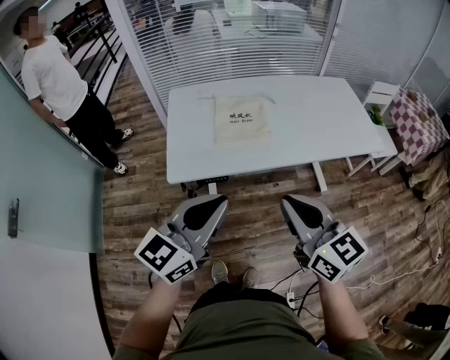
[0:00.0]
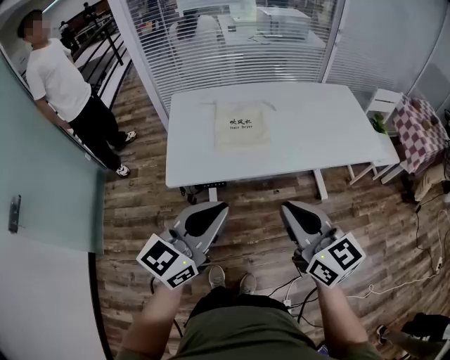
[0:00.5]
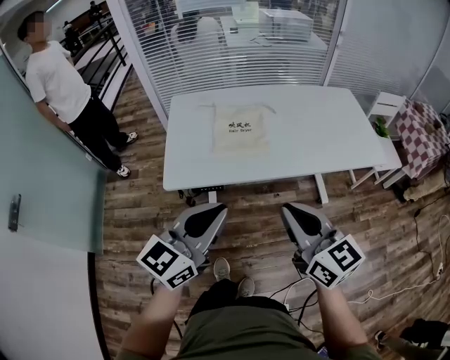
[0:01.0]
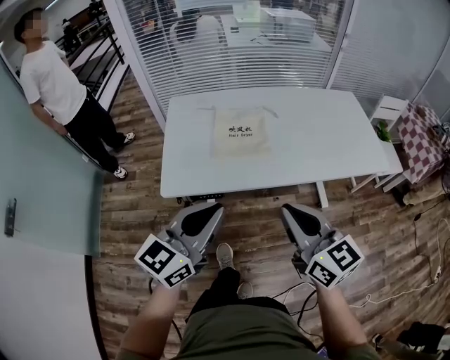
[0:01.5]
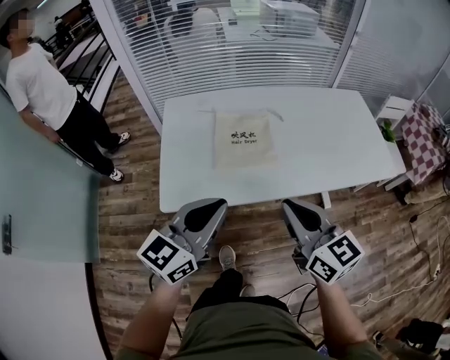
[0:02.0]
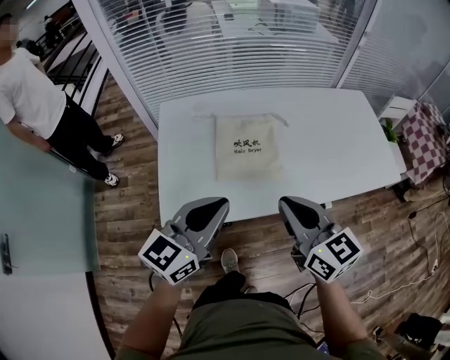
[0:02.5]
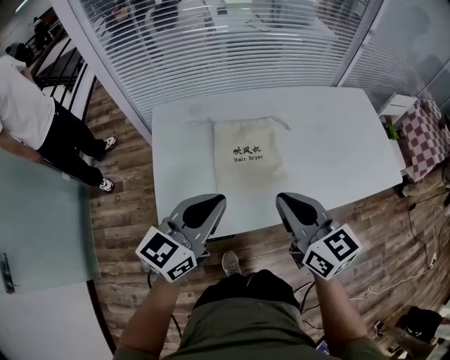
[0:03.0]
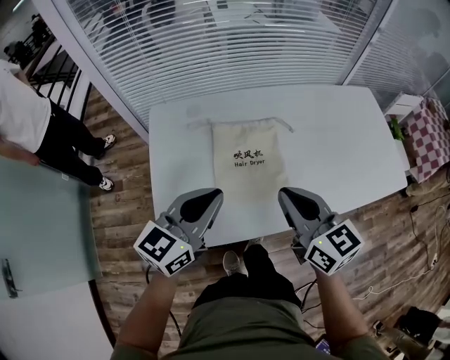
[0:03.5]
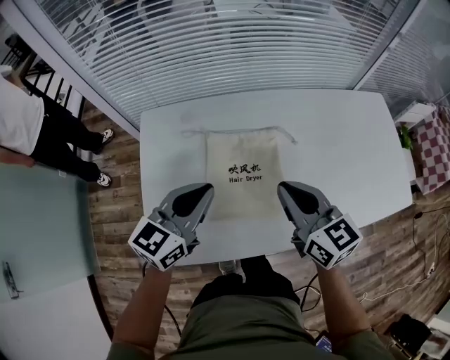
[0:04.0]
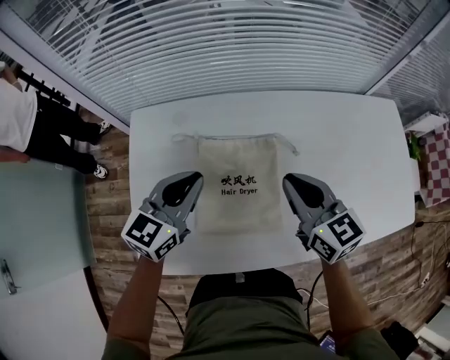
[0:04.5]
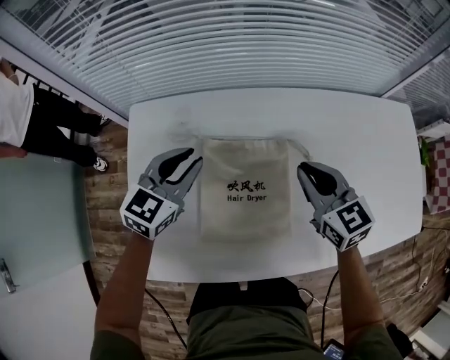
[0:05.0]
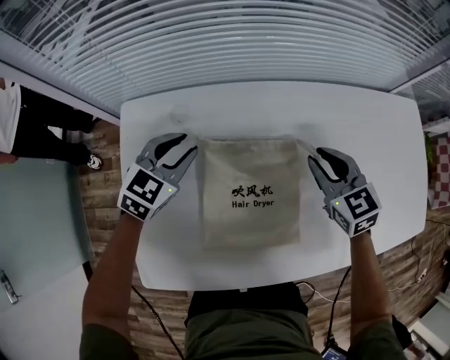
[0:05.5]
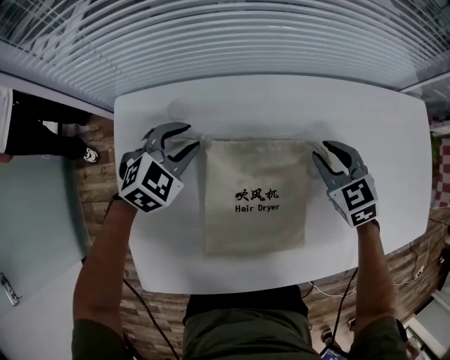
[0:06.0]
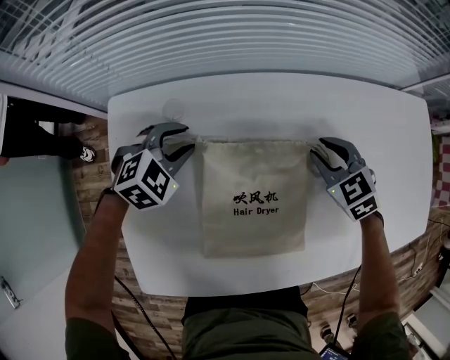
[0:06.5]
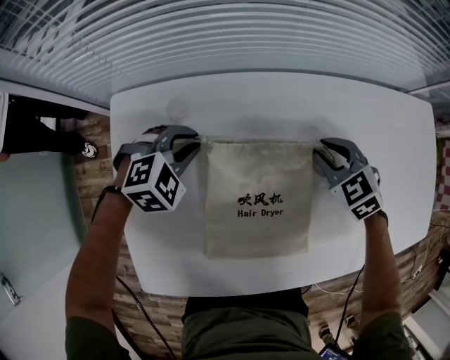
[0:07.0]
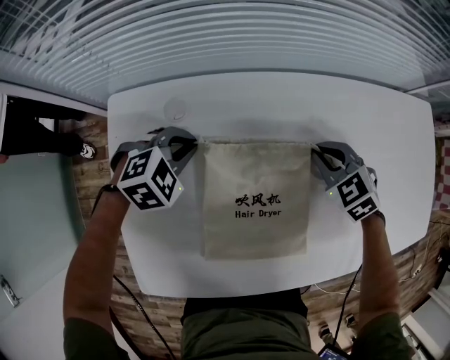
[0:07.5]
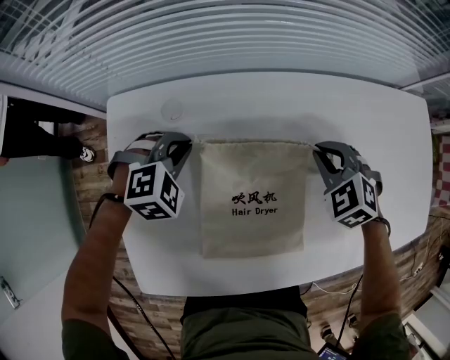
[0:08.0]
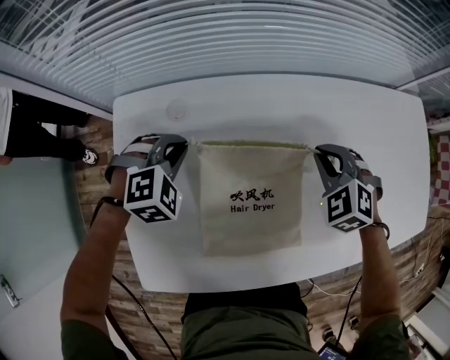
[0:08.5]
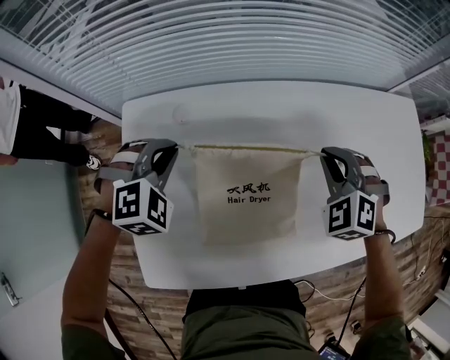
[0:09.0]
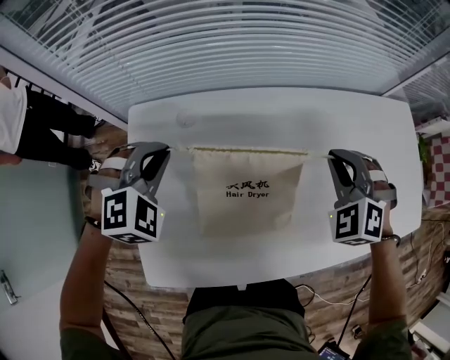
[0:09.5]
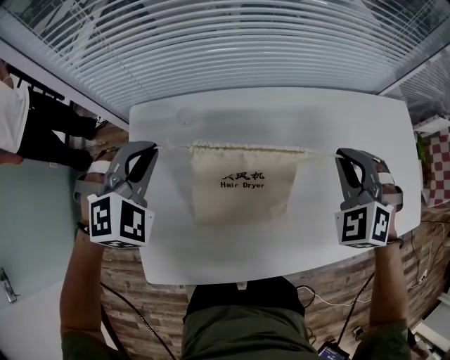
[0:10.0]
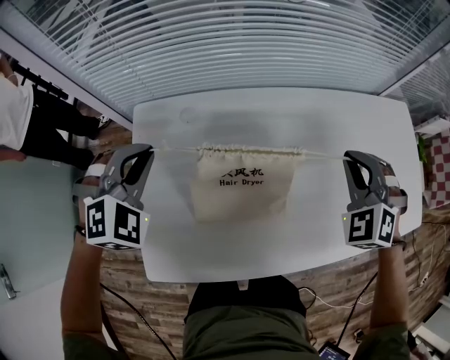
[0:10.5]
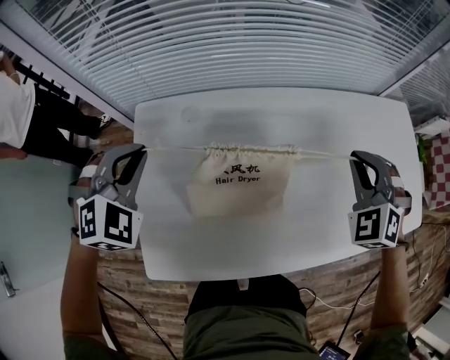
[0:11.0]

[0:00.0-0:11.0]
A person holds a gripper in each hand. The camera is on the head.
0:00.0 to 0:02.0: The two grippers go about 15 cm forward.
0:02.0 to 0:03.5: Both grippers move forward, roughly 20 cm.
0:03.5 to 0:05.5: The two grippers go roughly 30 cm forward and downward. The left gripper rotates some 30 degrees, and opens up; the right gripper rotates some 30 degrees.
0:05.5 to 0:07.5: The grippers both shift downward by some 5 cm. The left gripper changes its angle by some 40 degrees; the right gripper rotates approximately 30 degrees.
0:07.5 to 0:09.0: Both grippers move upward, some 10 cm. The right gripper swivels approximately 30 degrees; the left gripper turns by roughly 20 degrees.
0:09.0 to 0:11.0: The right gripper moves to the right and upward, approximately 10 cm, while the left gripper heads upward and backward, covering about 15 cm.

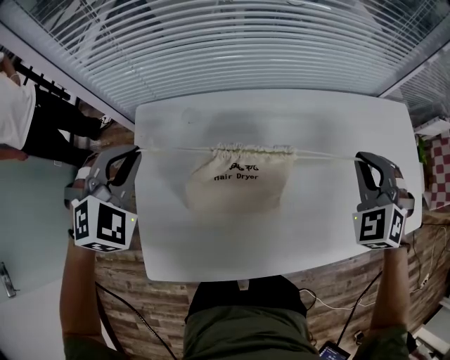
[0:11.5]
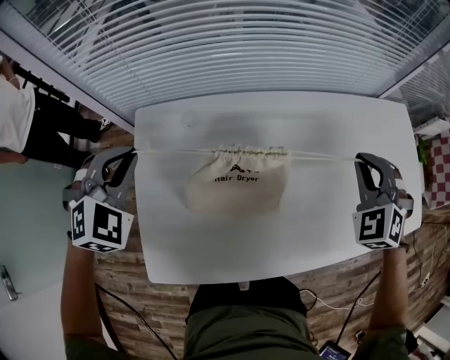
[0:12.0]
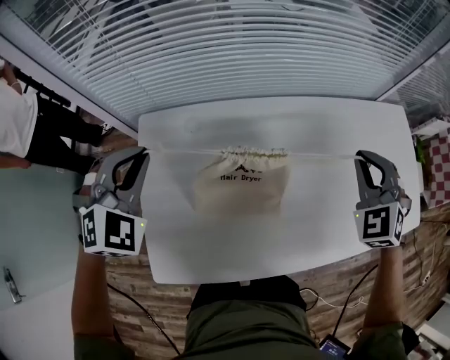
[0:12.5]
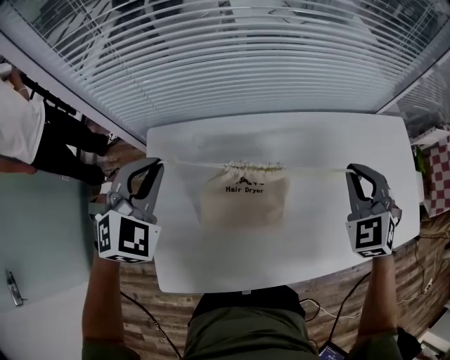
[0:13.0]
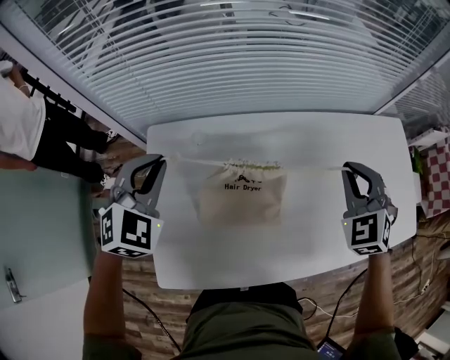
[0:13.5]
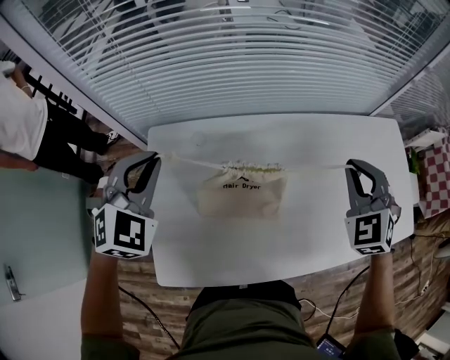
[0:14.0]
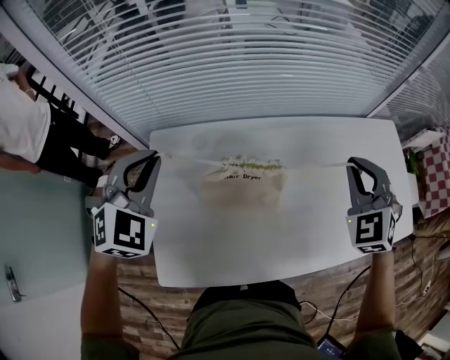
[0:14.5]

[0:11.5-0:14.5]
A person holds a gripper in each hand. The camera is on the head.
0:11.5 to 0:13.0: The grippers stay close to where they were, moving slightly.
0:13.0 to 0:14.5: There are only small adjustments of the grippers.

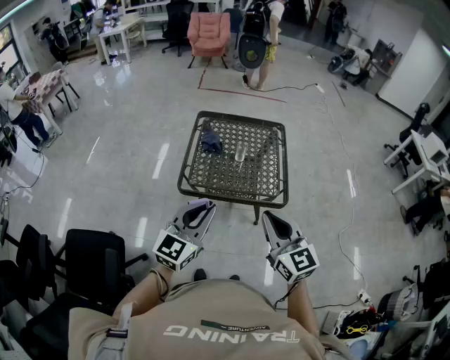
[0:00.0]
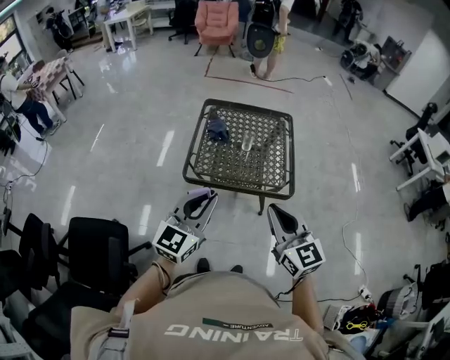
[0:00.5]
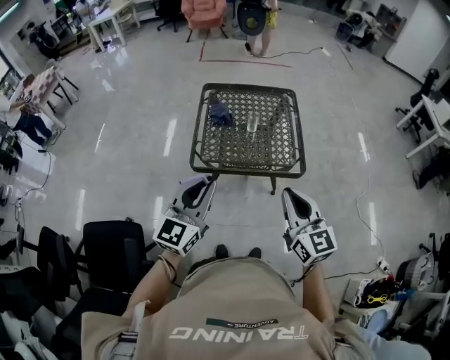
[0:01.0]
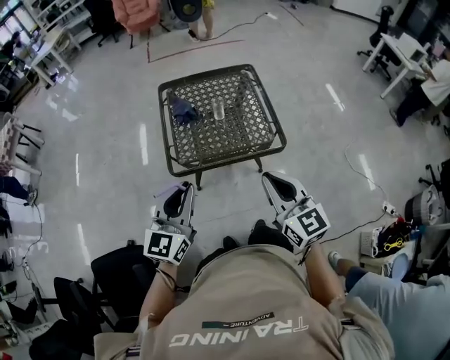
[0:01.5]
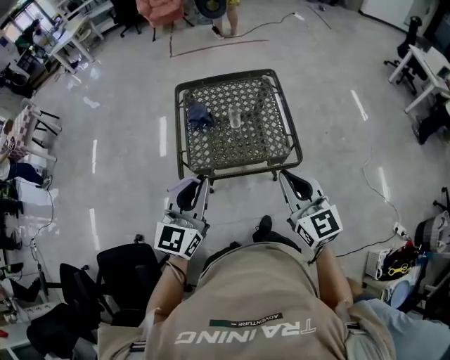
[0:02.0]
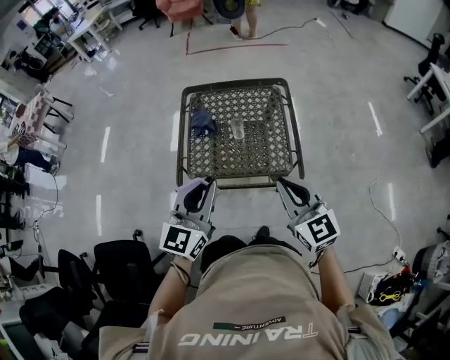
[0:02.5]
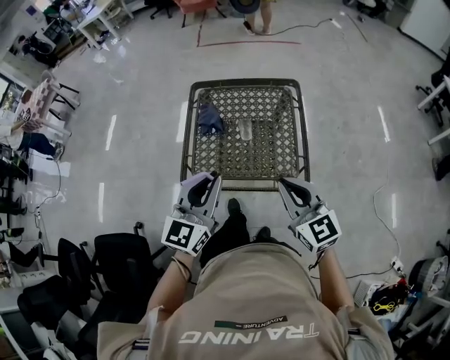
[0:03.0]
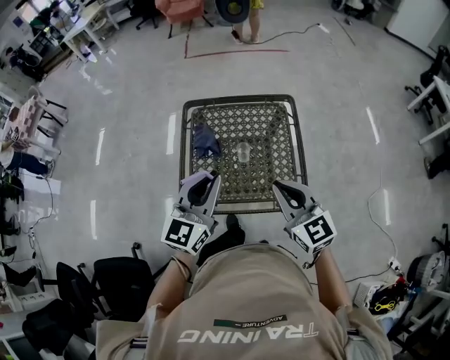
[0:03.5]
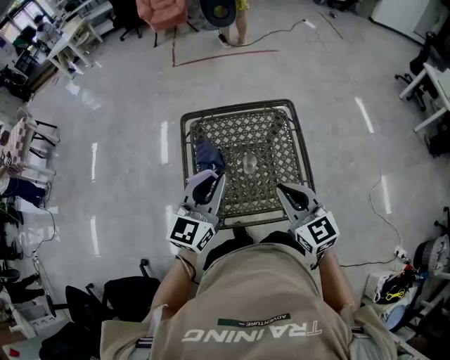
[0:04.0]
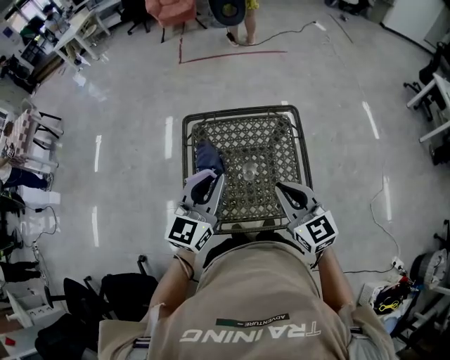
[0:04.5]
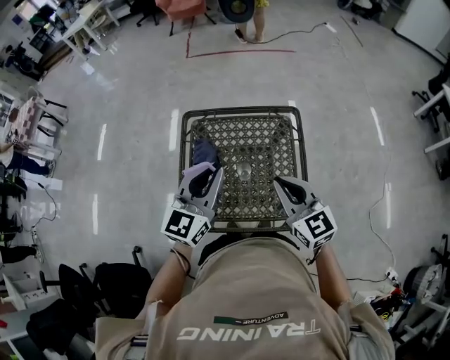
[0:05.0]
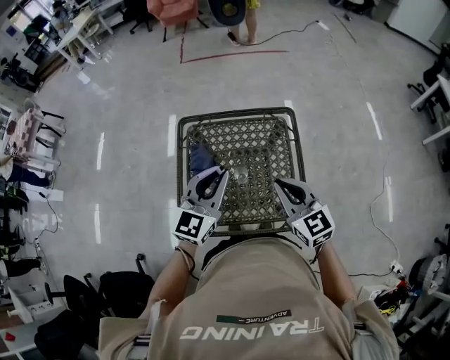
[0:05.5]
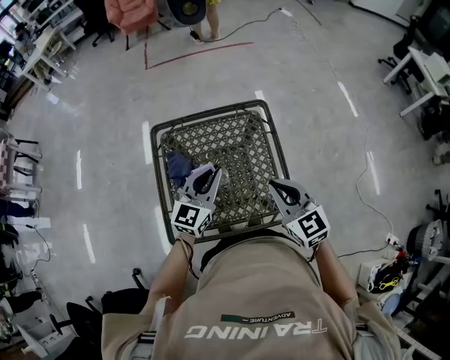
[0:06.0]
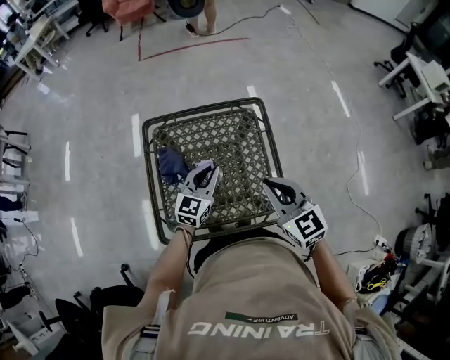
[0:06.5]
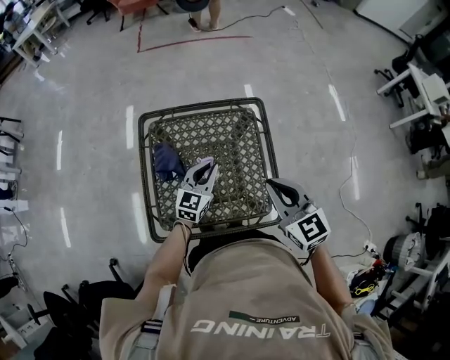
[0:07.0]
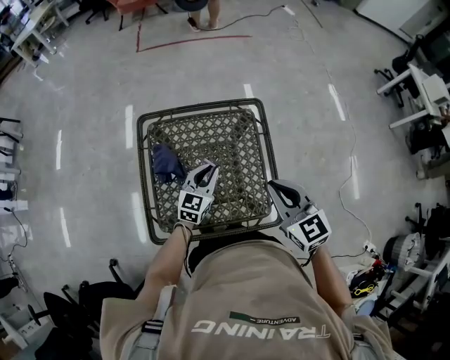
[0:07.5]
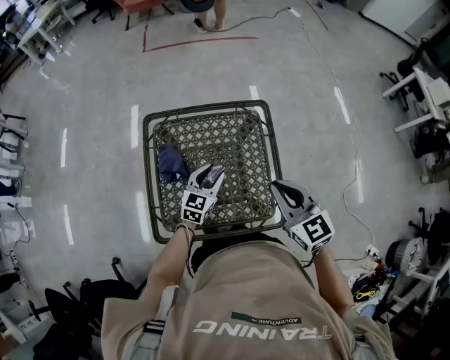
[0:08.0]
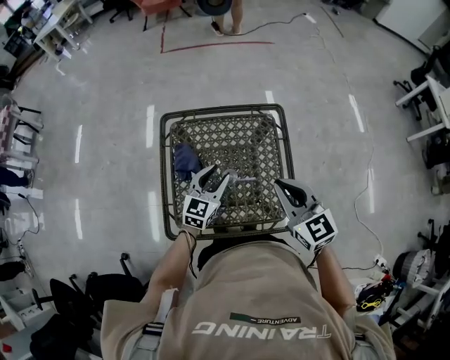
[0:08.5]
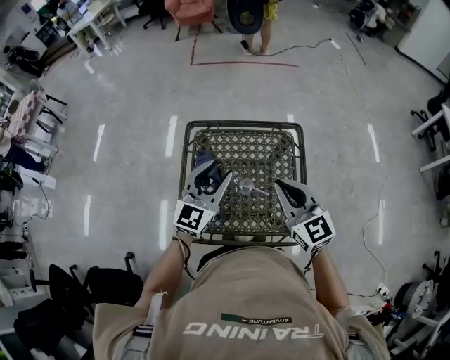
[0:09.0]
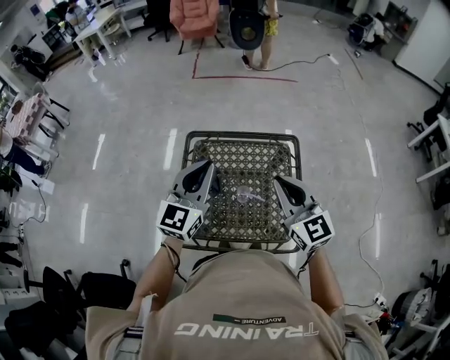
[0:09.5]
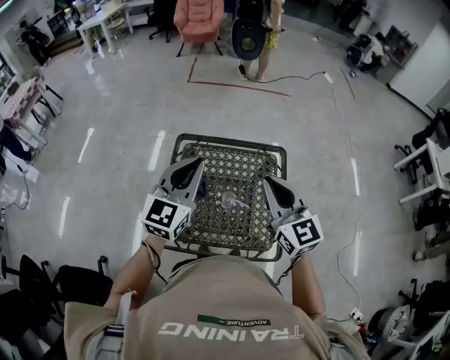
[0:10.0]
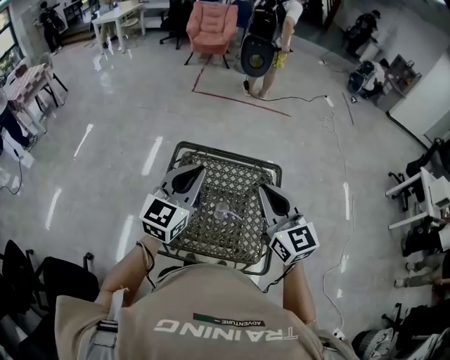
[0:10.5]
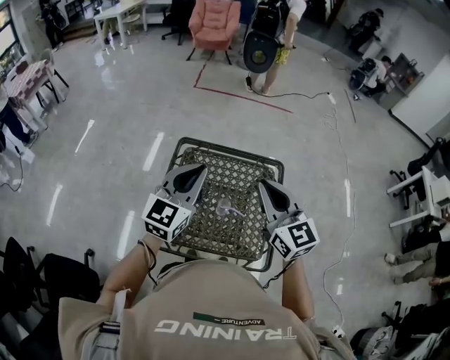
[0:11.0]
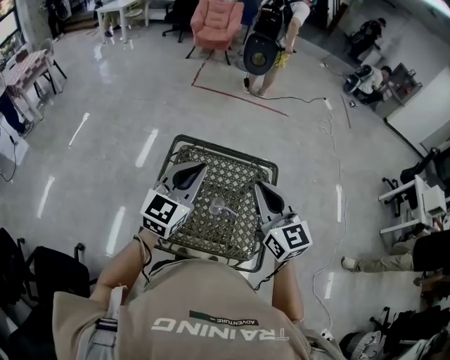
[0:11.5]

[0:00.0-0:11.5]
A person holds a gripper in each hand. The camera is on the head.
0:00.0 to 0:02.0: The grippers both shift forward by about 10 cm.
0:02.0 to 0:04.0: Both grippers move forward, some 20 cm.
0:04.0 to 0:06.0: The right gripper shifts about 10 cm to the right and forward; the left gripper travels forward, to the right and downward by some 15 cm.
0:06.0 to 0:07.5: The left gripper goes approximately 15 cm downward.
0:07.5 to 0:09.5: The left gripper moves upward and to the left, approximately 30 cm, turns by about 20 degrees, and opens, then closes again. The right gripper is displaced upward and to the left by approximately 10 cm.
0:09.5 to 0:11.5: The right gripper moves about 5 cm.

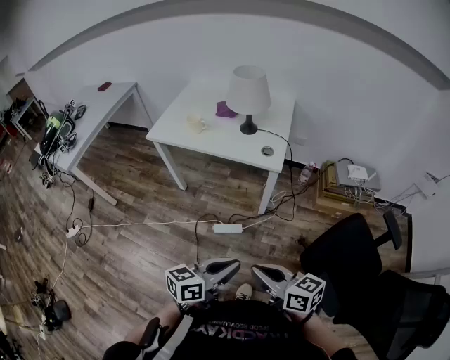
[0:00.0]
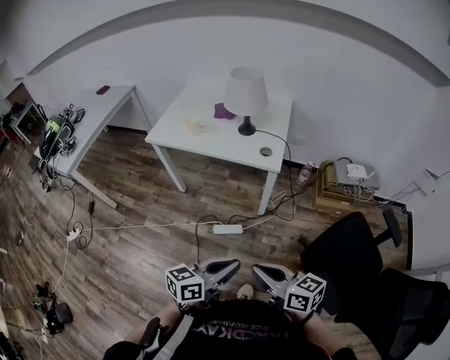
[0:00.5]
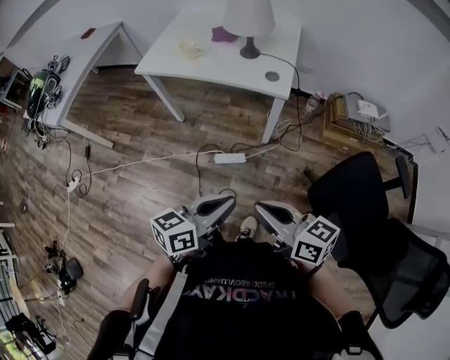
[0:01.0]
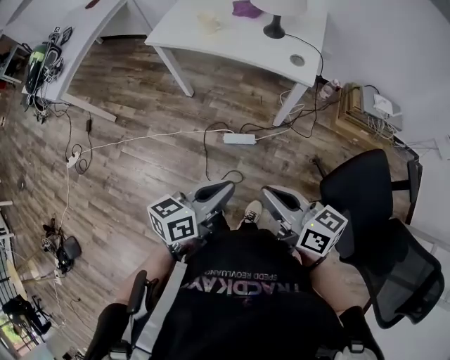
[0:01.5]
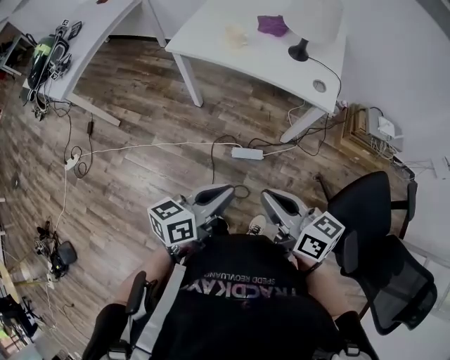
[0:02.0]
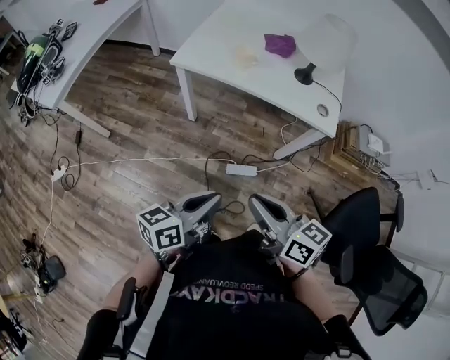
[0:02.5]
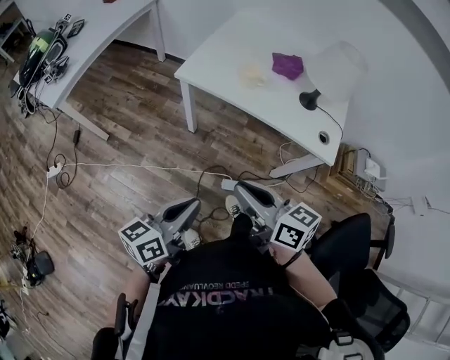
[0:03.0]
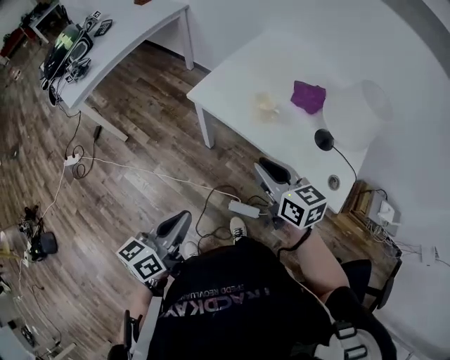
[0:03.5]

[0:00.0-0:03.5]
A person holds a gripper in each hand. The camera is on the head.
0:00.0 to 0:02.0: The right gripper heads to the left and forward, covering roughly 15 cm. The left gripper moves to the left, some 20 cm.
0:02.0 to 0:03.5: The left gripper travels forward and to the left by roughly 20 cm, and rotates about 30 degrees. The right gripper heads forward, covering some 35 cm, changes its angle by approximately 20 degrees, and opens its fingers.
